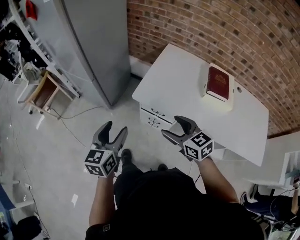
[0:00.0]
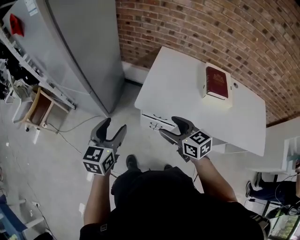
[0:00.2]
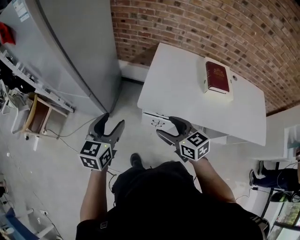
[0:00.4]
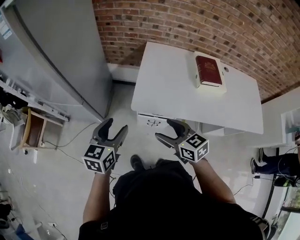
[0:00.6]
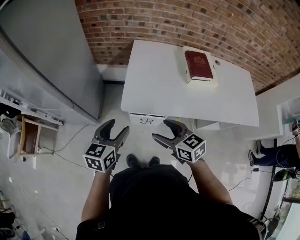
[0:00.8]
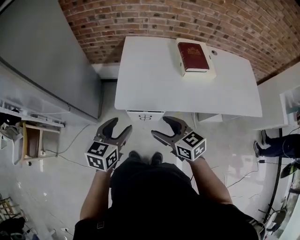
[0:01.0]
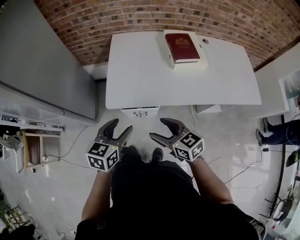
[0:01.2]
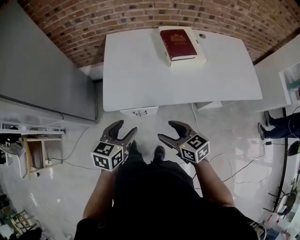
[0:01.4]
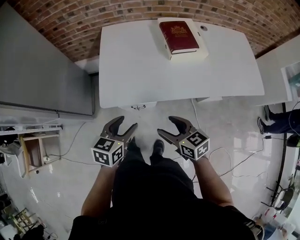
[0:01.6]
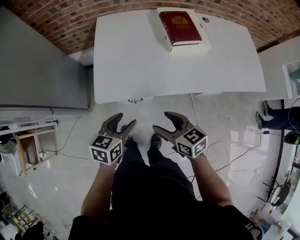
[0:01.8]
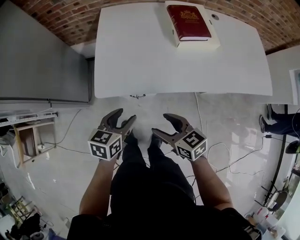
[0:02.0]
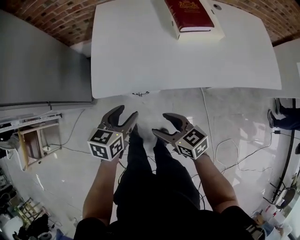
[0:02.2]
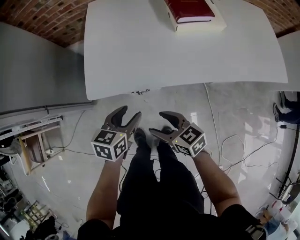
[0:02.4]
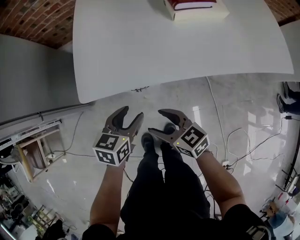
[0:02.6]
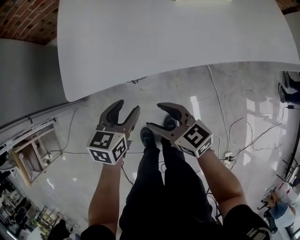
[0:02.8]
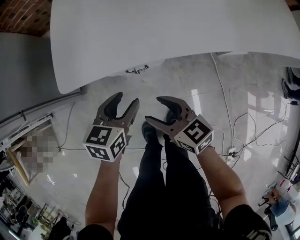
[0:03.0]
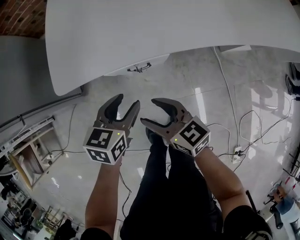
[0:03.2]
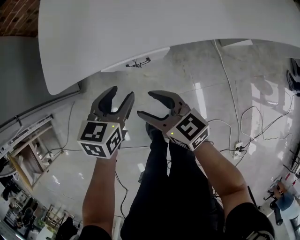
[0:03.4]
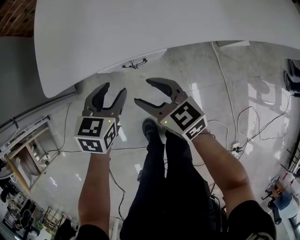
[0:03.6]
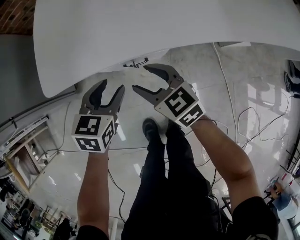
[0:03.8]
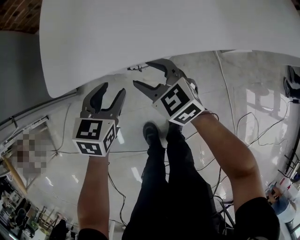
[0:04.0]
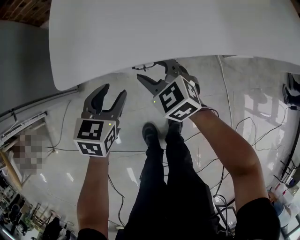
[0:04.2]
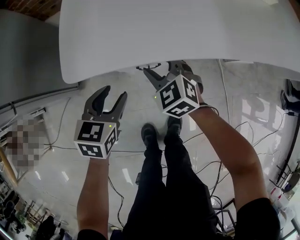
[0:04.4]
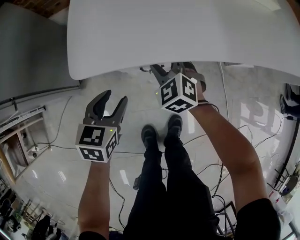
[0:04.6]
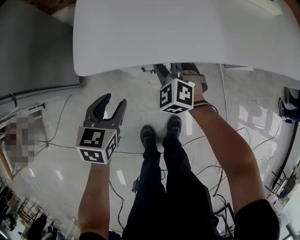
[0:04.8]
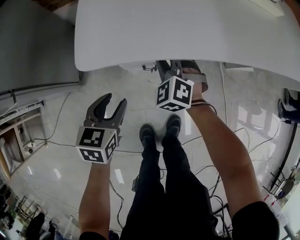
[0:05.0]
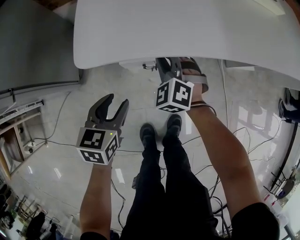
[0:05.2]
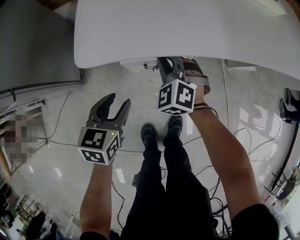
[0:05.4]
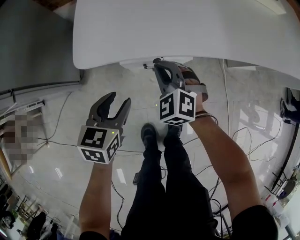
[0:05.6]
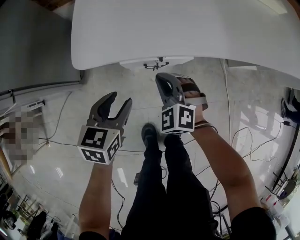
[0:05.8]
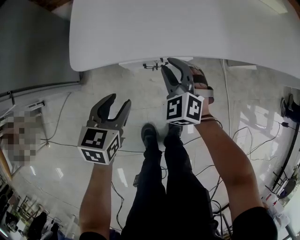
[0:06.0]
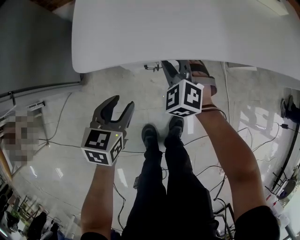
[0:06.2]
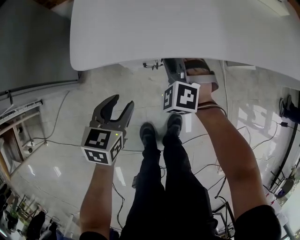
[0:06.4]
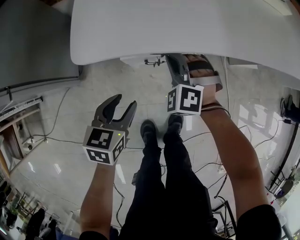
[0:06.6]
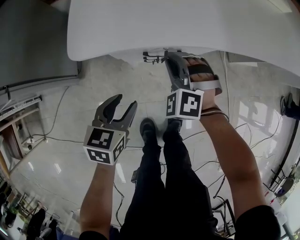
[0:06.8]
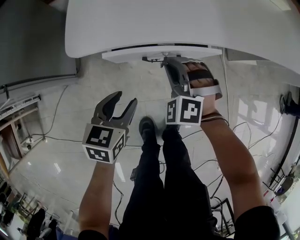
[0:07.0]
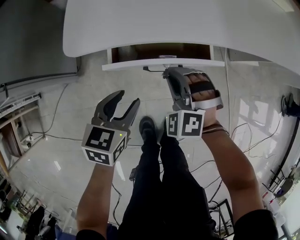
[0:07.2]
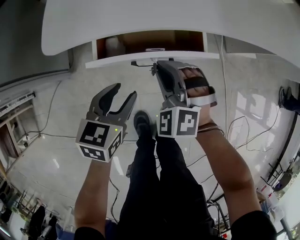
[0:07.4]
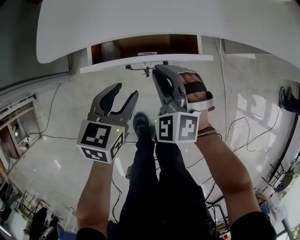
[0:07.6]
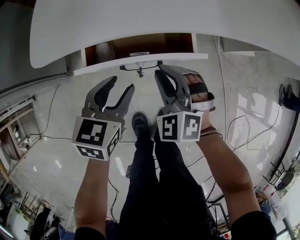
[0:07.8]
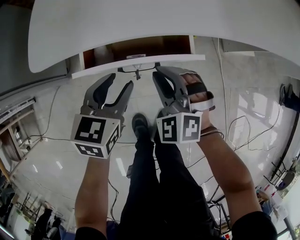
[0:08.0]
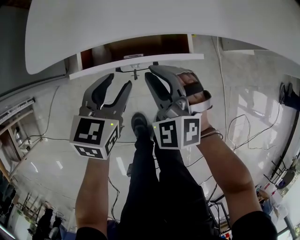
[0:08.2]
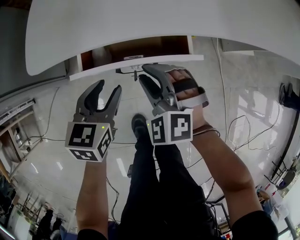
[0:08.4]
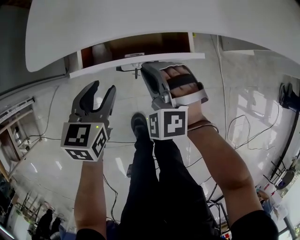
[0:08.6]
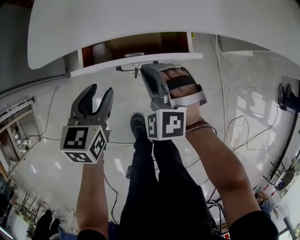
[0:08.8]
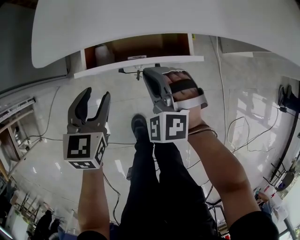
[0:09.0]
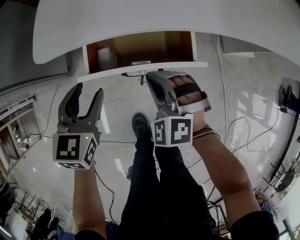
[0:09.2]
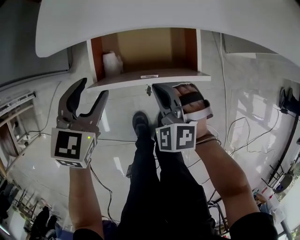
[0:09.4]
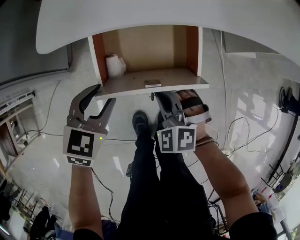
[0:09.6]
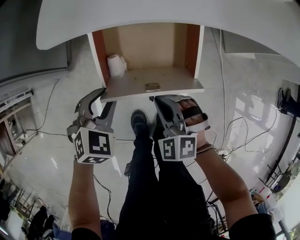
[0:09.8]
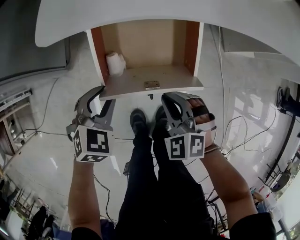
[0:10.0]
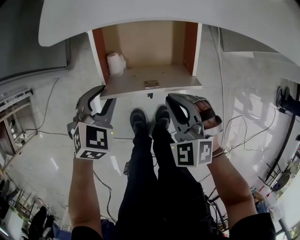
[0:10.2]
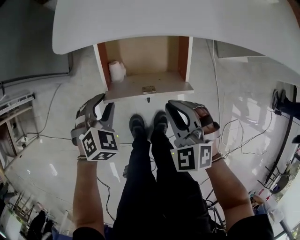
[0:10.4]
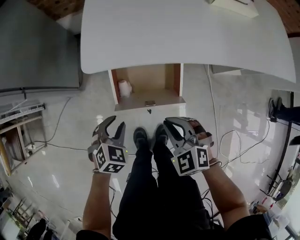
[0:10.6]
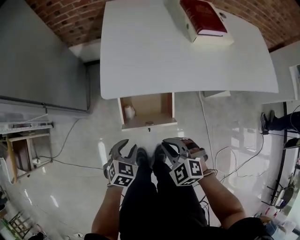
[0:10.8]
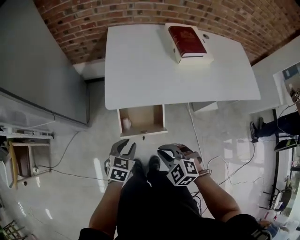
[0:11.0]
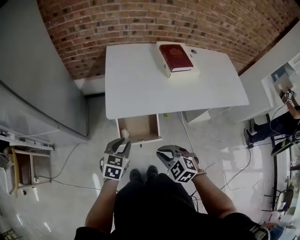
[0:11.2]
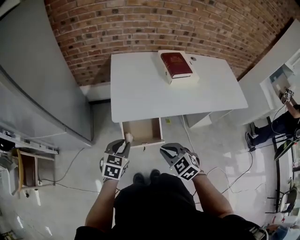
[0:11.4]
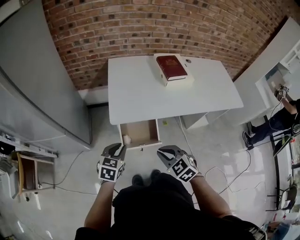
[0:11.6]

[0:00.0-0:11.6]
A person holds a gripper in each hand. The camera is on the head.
0:00.0 to 0:01.4: The left gripper ends up about 15 cm from where it was, and swivels approximately 50 degrees, while the right gripper changes place by some 10 cm, and turns by about 30 degrees.
0:01.4 to 0:02.8: Both grippers move downward, approximately 25 cm.
0:02.8 to 0:04.4: The right gripper moves forward, downward and to the left, roughly 20 cm, and rotates about 50 degrees; the left gripper travels to the left and downward by roughly 15 cm.
0:04.4 to 0:05.8: The right gripper heads backward, covering approximately 5 cm, and closes.
0:05.8 to 0:07.2: The right gripper travels forward and back again, approximately 5 cm each way.
0:08.8 to 0:10.2: The right gripper goes about 10 cm backward, while the left gripper travels backward by about 5 cm, and swivels roughly 40 degrees.
0:10.2 to 0:11.6: The grippers both shift upward by roughly 35 cm. The right gripper changes its angle by some 20 degrees. Meanwhile the left gripper changes its angle by approximately 30 degrees.

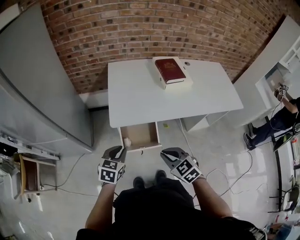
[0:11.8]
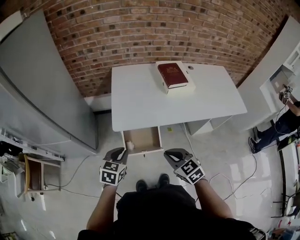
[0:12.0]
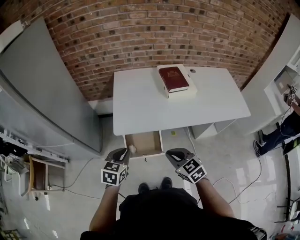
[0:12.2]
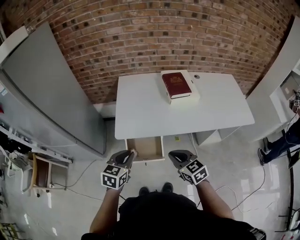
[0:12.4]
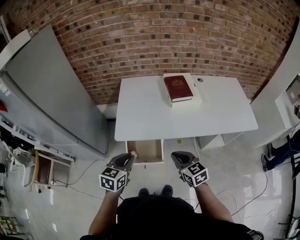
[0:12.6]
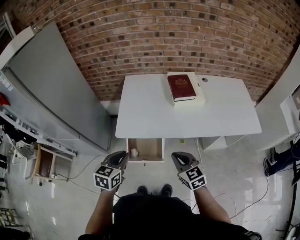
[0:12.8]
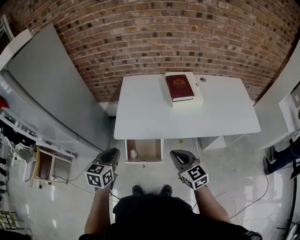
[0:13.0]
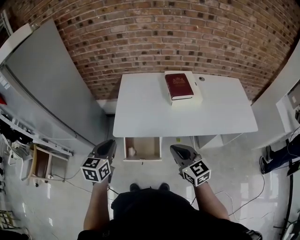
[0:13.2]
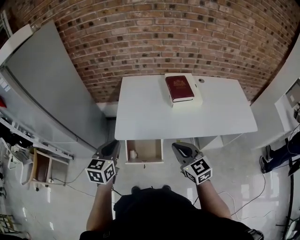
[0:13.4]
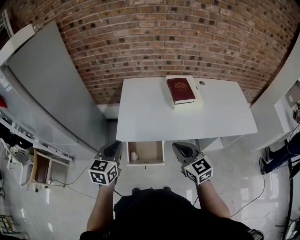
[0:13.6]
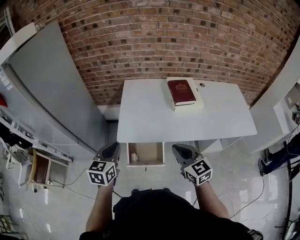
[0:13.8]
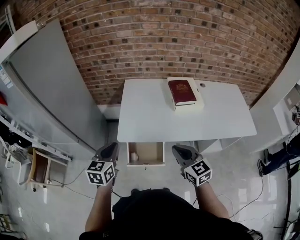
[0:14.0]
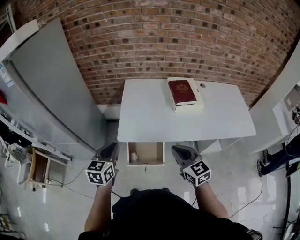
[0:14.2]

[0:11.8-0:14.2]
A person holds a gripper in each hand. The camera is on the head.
0:11.8 to 0:13.0: The right gripper shifts about 15 cm to the right, forward and upward, and changes its angle by approximately 20 degrees. The left gripper shifts some 10 cm upward.
0:13.0 to 0:14.2: The left gripper shifts by approximately 5 cm. The right gripper ends up about 5 cm from where it was.

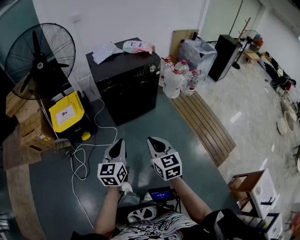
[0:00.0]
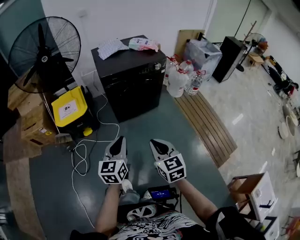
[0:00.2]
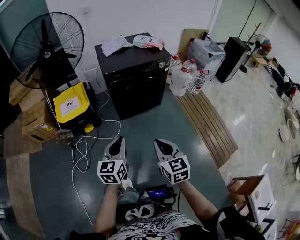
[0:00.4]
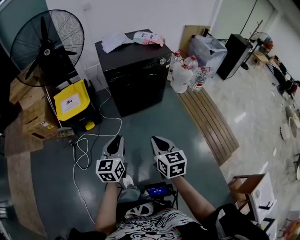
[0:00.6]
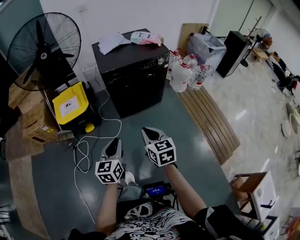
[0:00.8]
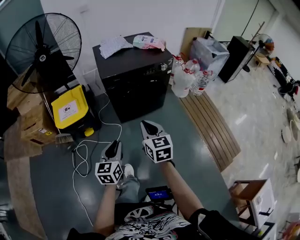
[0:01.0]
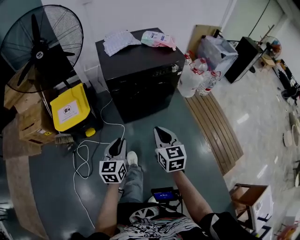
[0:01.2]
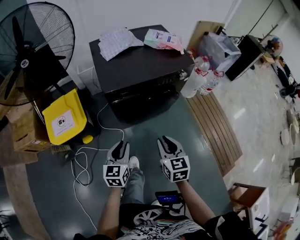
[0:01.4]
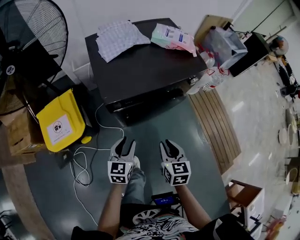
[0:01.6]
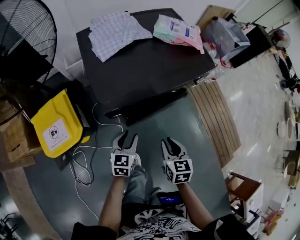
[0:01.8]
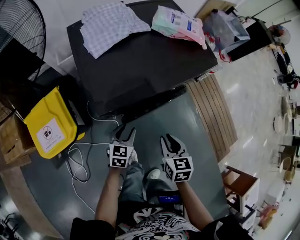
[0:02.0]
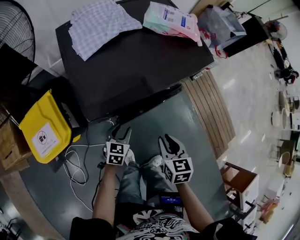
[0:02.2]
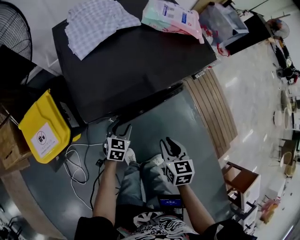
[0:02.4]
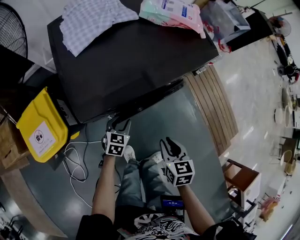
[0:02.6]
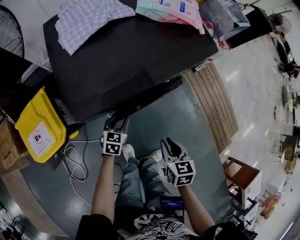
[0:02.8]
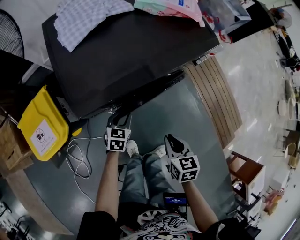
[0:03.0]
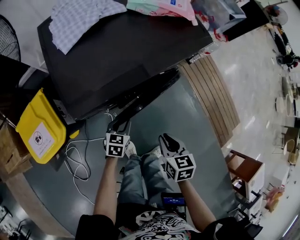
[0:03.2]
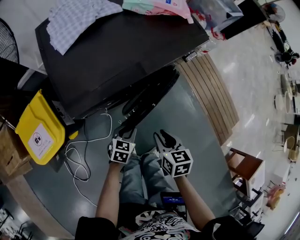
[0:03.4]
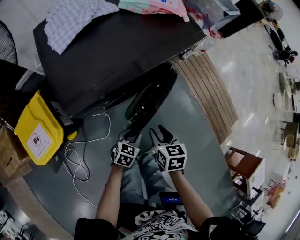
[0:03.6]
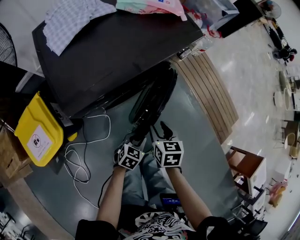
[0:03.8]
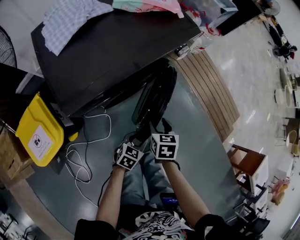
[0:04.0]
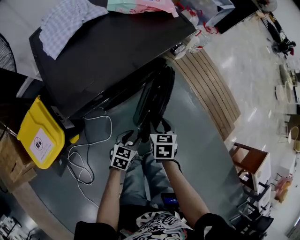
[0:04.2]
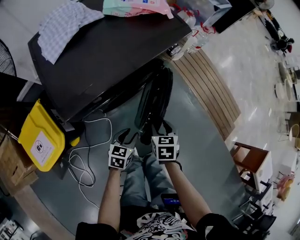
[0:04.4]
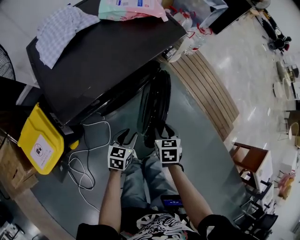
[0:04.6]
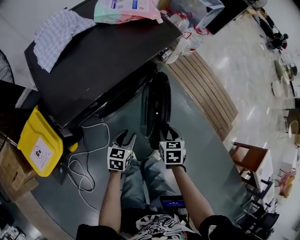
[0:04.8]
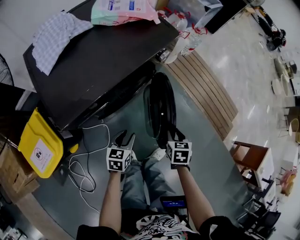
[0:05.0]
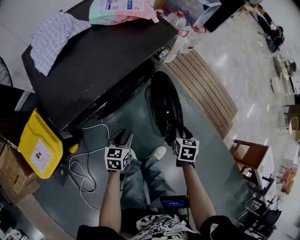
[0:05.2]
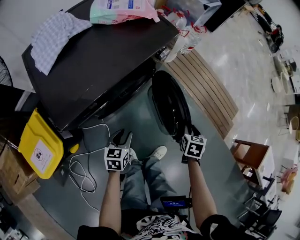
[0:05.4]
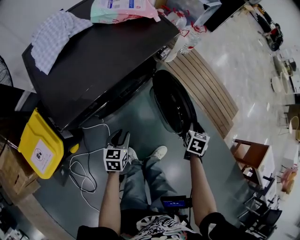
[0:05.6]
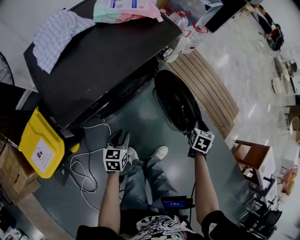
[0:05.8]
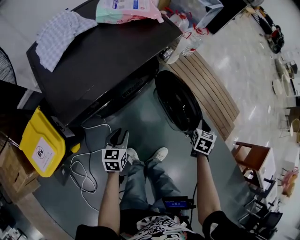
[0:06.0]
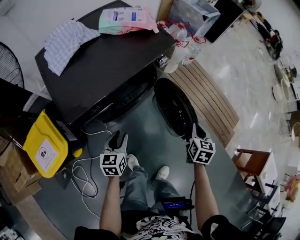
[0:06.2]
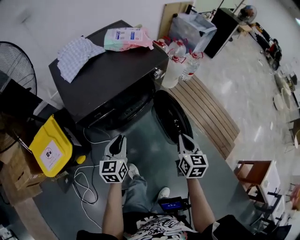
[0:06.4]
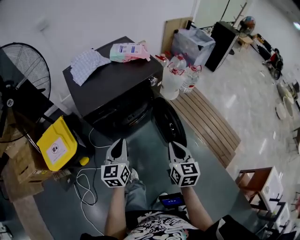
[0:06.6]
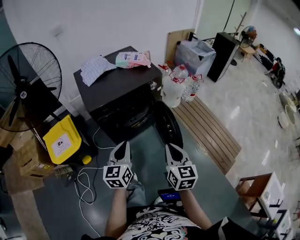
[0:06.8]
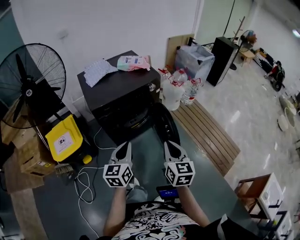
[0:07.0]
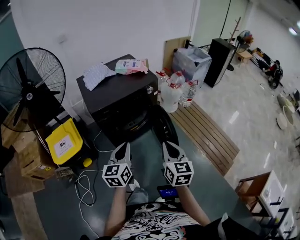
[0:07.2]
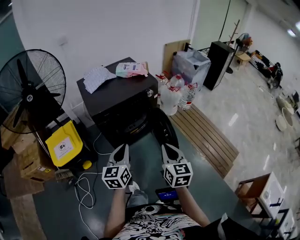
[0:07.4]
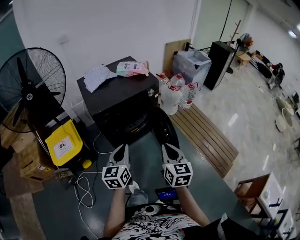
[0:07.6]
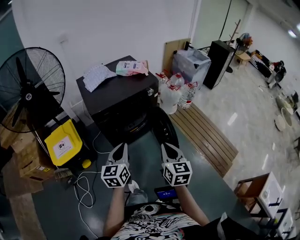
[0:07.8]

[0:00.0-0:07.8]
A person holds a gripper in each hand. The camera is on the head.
0:00.0 to 0:01.6: The grippers both shift forward and downward by some 40 cm. The right gripper changes its angle by approximately 20 degrees. The left gripper opens up.
0:01.6 to 0:03.2: The left gripper heads downward and forward, covering some 20 cm, and changes its angle by roughly 20 degrees. Meanwhile the right gripper moves downward, approximately 10 cm.
0:03.2 to 0:04.6: The right gripper moves to the right and downward, approximately 10 cm, and opens; the left gripper goes about 10 cm to the right.
0:04.6 to 0:06.2: The left gripper shifts about 5 cm upward, while the right gripper goes roughly 20 cm to the right, upward and forward, swivels some 20 degrees, and closes its fingers.
0:06.2 to 0:07.8: The two grippers go approximately 35 cm upward and backward. The left gripper changes its angle by about 20 degrees, and closes; the right gripper swivels about 40 degrees.

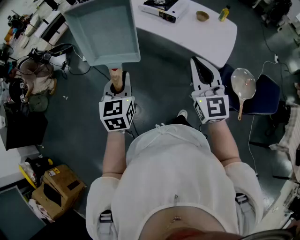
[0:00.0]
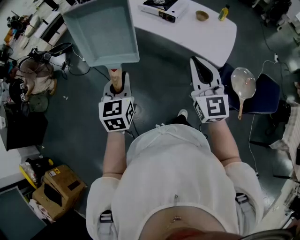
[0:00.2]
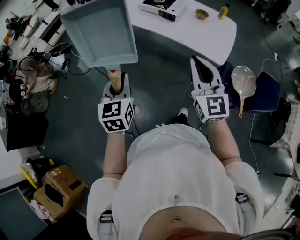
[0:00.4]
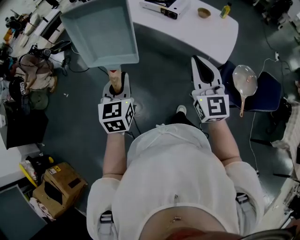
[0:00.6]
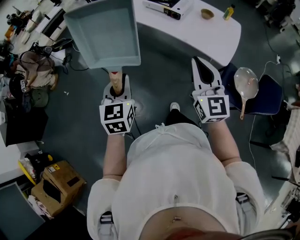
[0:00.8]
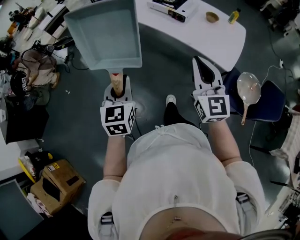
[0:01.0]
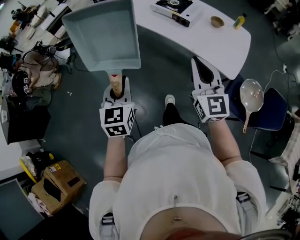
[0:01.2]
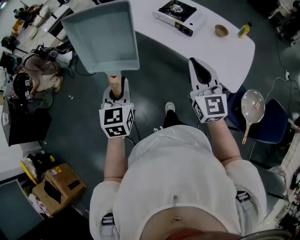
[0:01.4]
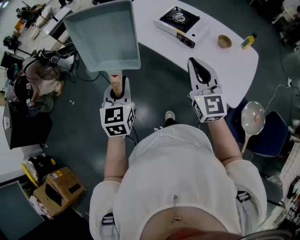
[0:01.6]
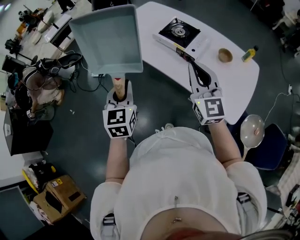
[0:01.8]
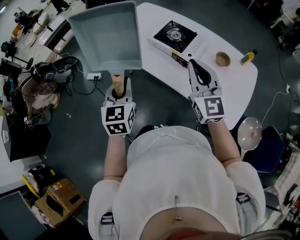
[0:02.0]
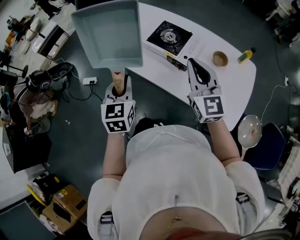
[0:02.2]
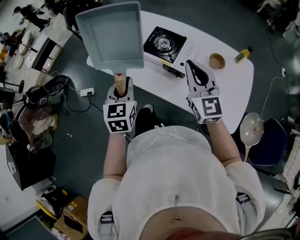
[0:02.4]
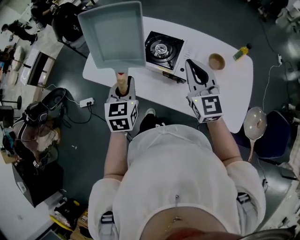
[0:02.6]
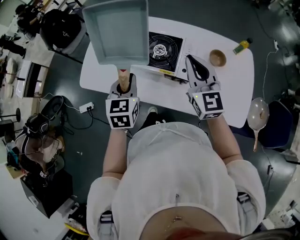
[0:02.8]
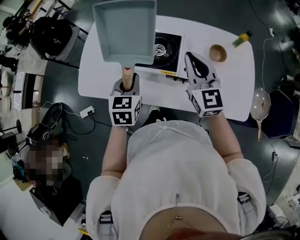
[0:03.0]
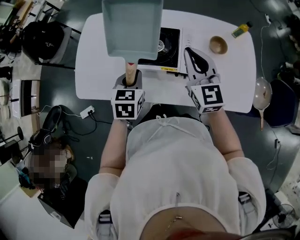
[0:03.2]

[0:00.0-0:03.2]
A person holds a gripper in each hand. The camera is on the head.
0:00.0 to 0:01.6: The two grippers go about 25 cm forward.
0:01.6 to 0:03.2: The right gripper shifts by roughly 40 cm, and swivels some 30 degrees. Meanwhile the left gripper ends up some 50 cm from where it was, and turns by about 40 degrees.
